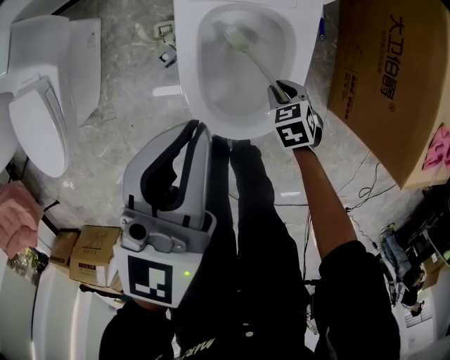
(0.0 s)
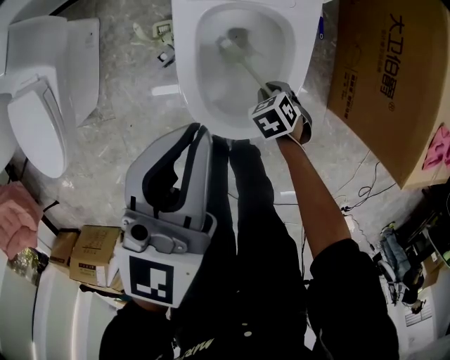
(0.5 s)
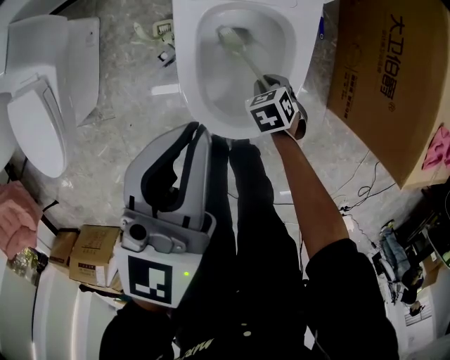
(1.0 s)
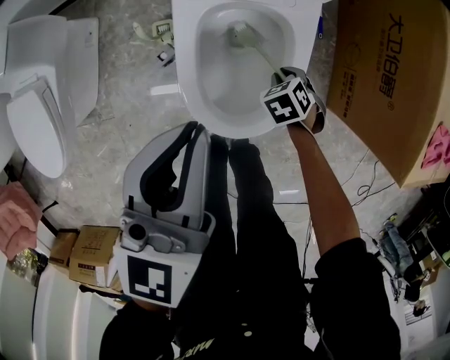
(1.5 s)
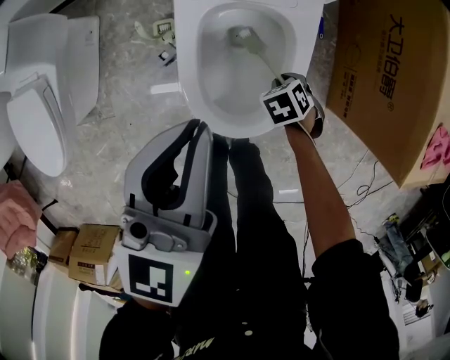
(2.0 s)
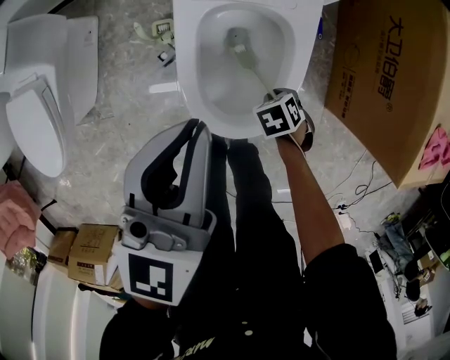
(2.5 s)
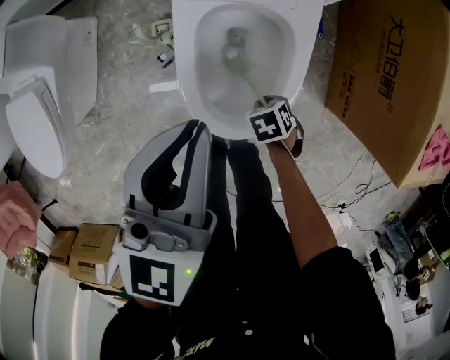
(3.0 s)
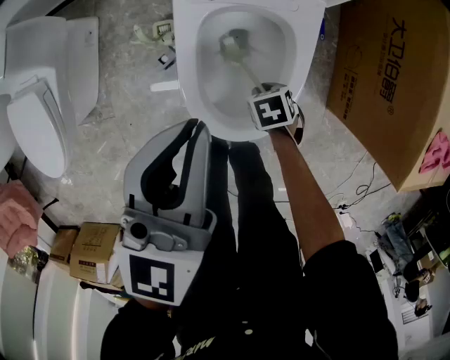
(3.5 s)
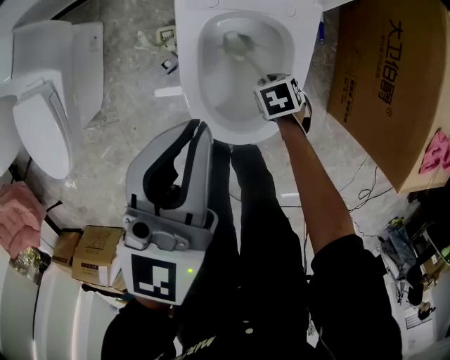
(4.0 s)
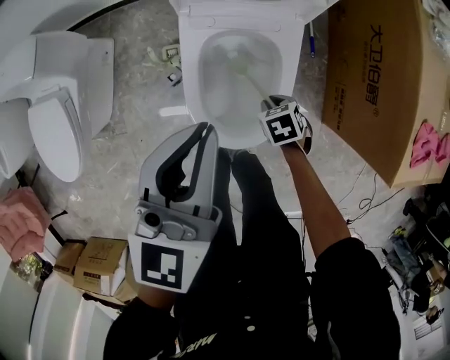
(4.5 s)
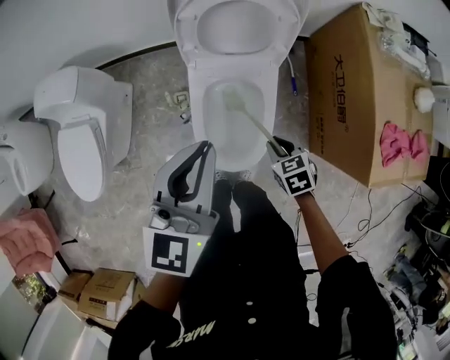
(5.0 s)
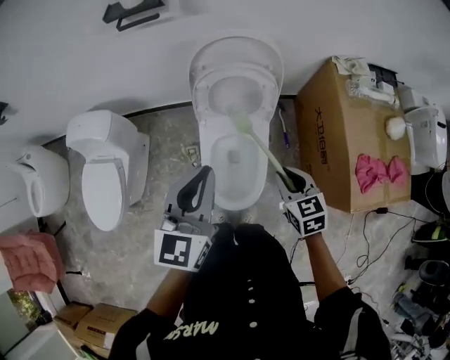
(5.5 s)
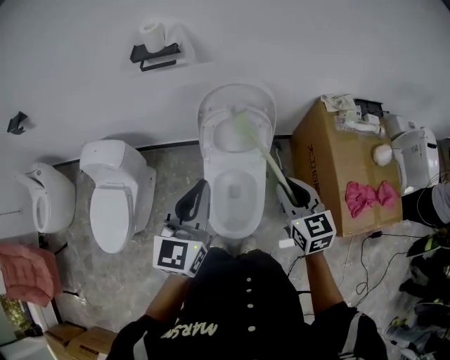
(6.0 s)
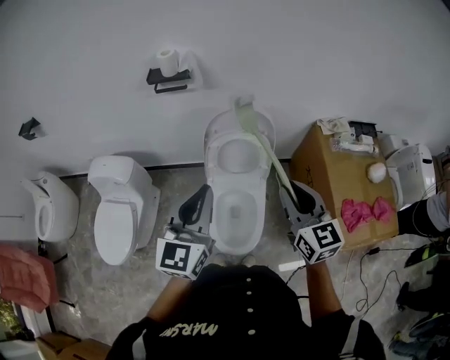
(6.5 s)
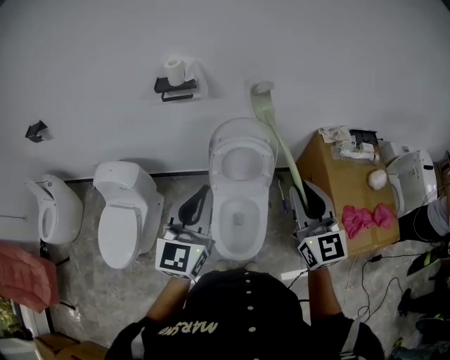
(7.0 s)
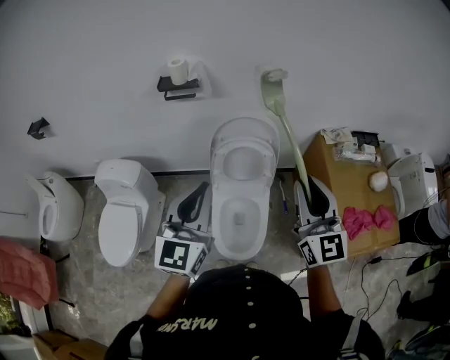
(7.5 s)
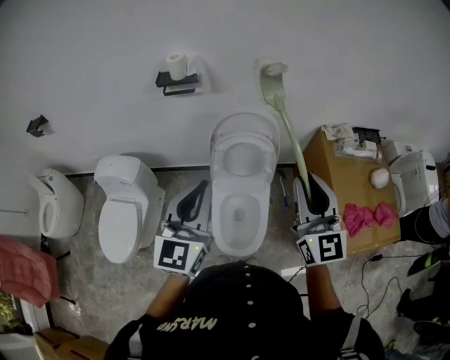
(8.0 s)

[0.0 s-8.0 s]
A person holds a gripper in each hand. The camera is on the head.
0.0 to 2.0 s: The grippers stay close to where they were, moving slightly.
4.0 to 6.0 s: The right gripper heads upward, covering roughly 70 cm, and tips its fingers upward by approximately 60 degrees. The left gripper moves upward, about 40 cm.
6.0 to 8.0 s: The left gripper shifts roughly 10 cm upward. The right gripper heads upward, covering approximately 20 cm, and tips its fingers upward by approximately 30 degrees.

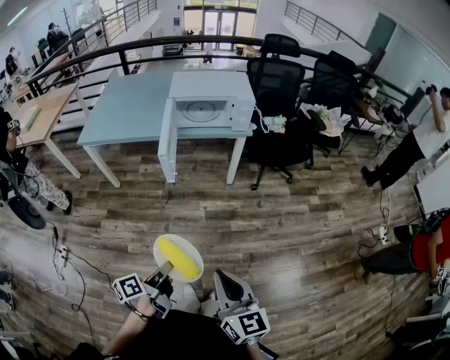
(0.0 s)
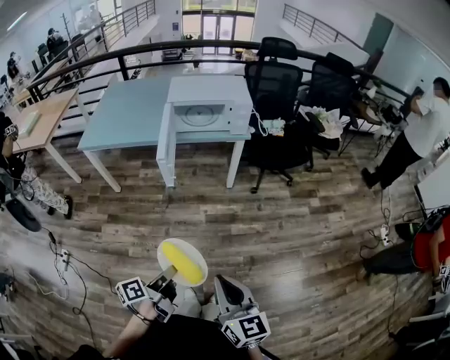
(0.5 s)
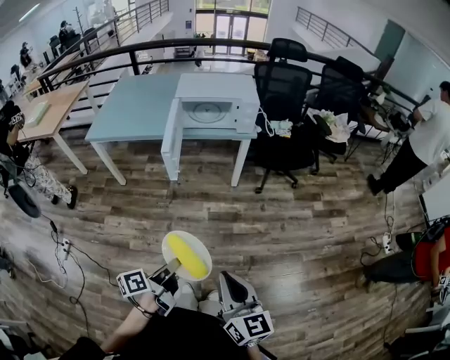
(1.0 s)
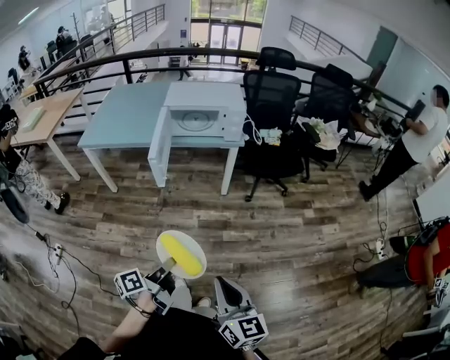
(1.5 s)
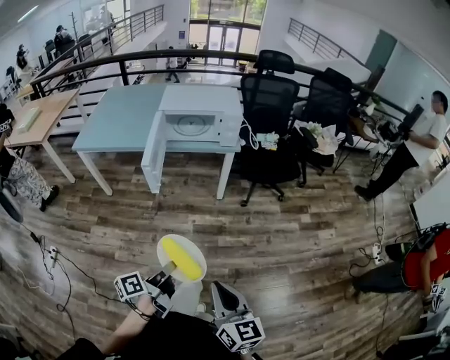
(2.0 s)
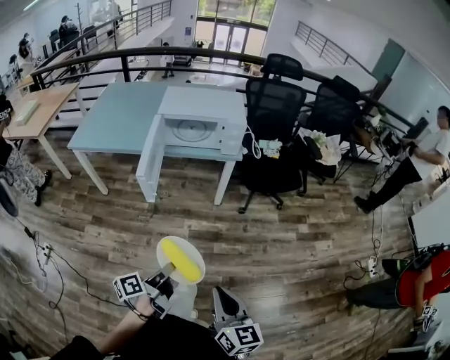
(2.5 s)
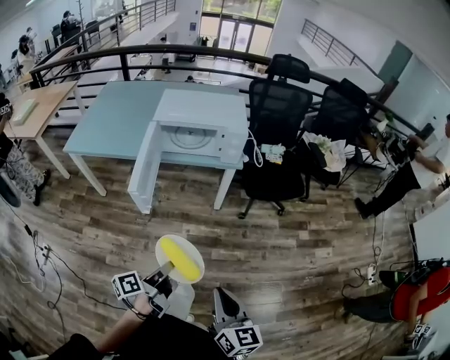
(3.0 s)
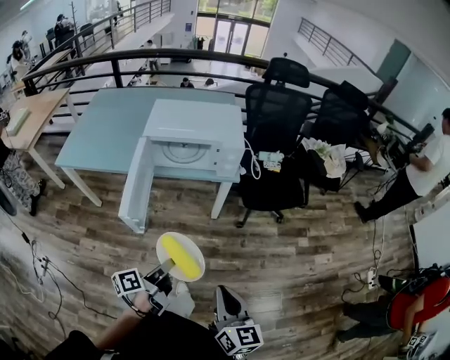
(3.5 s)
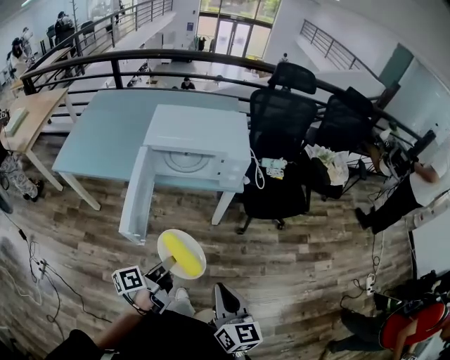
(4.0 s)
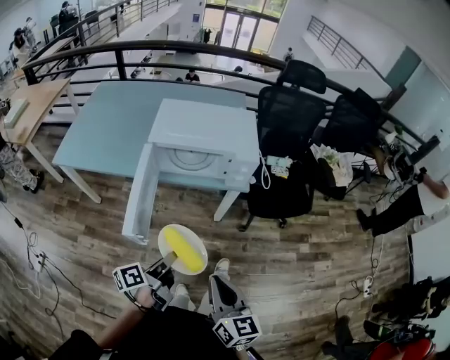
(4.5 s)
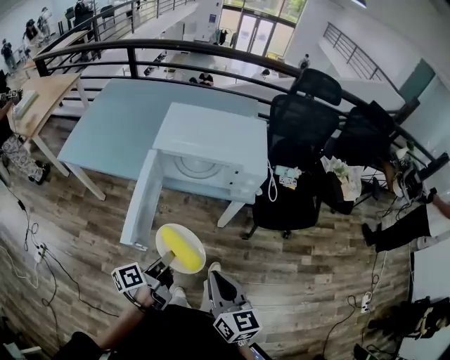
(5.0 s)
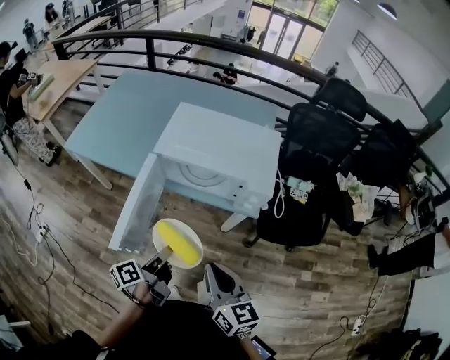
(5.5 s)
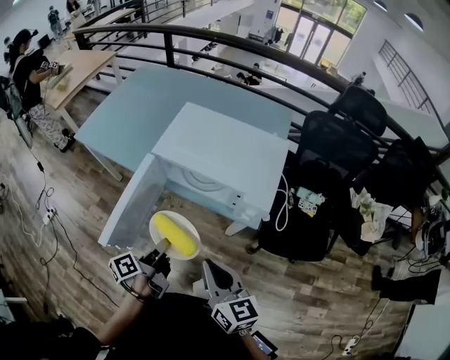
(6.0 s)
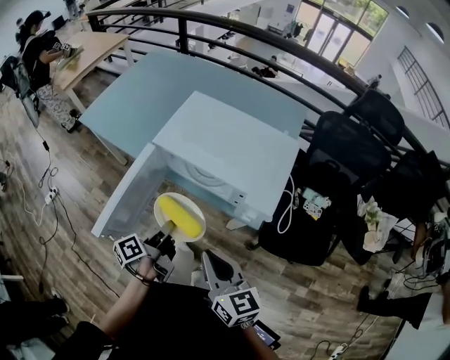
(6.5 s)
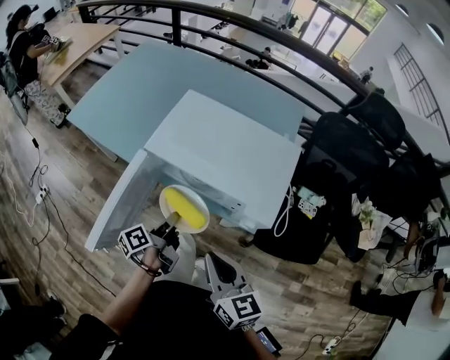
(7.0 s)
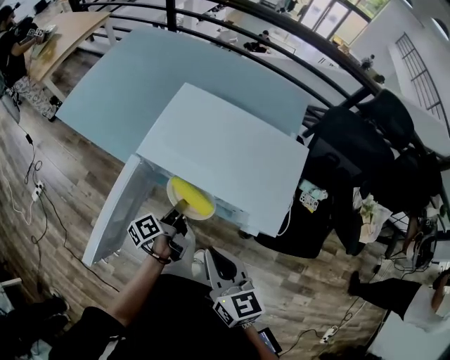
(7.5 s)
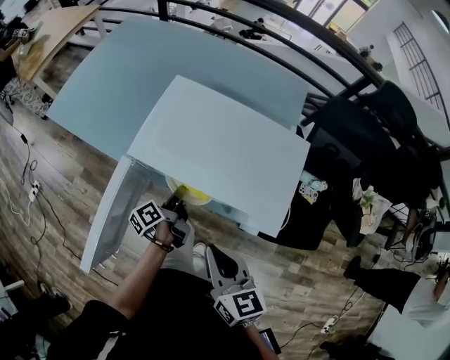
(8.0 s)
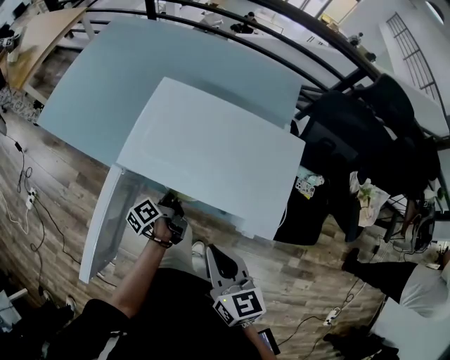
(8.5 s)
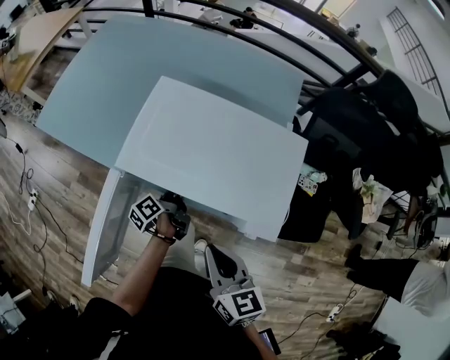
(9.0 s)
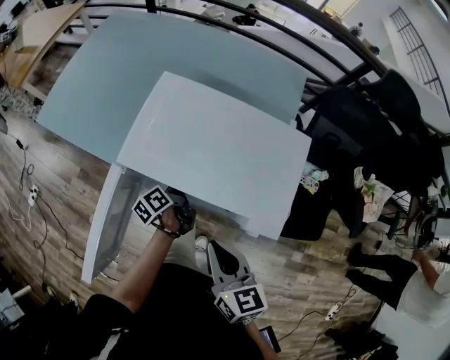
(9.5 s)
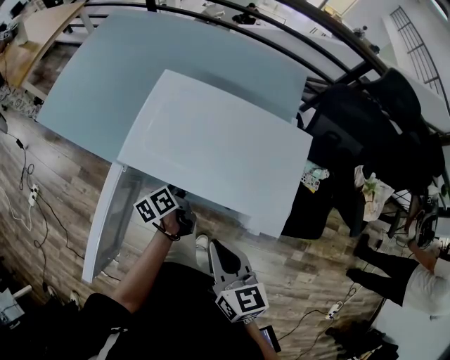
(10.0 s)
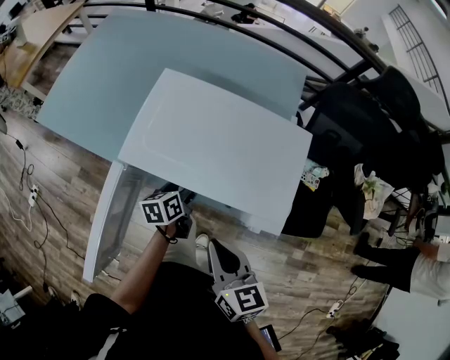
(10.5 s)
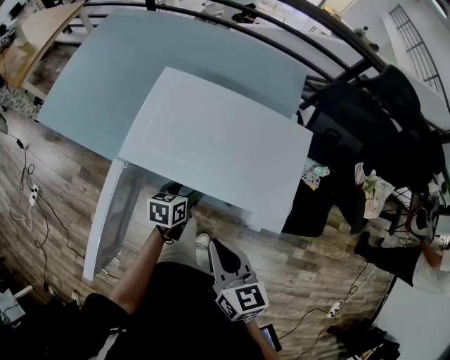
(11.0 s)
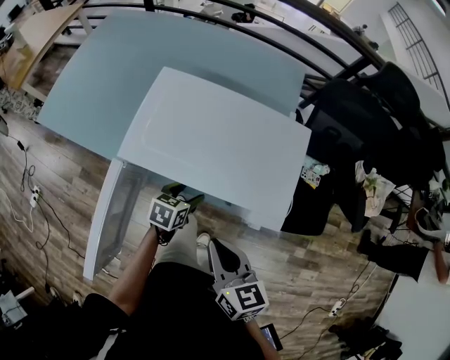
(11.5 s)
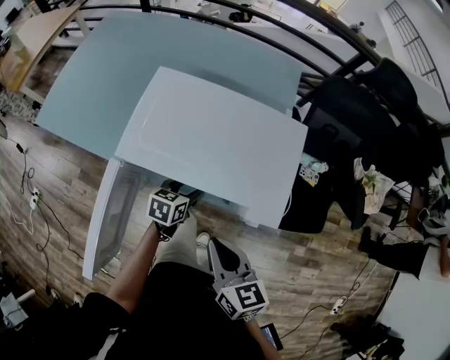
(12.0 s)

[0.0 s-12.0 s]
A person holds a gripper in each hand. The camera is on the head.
0.0 to 2.0 s: Both grippers travel together to the right, roughly 10 cm.
2.0 to 4.0 s: The grippers both shift forward by roughly 30 cm.
4.0 to 6.0 s: The right gripper ends up approximately 25 cm from where it was, and rotates some 30 degrees, while the left gripper shifts by approximately 15 cm, and rotates approximately 30 degrees.
6.0 to 8.0 s: The left gripper travels forward and downward by some 25 cm. Meanwhile the right gripper heads forward, covering about 15 cm.
8.0 to 10.0 s: The left gripper turns by about 20 degrees, and opens up.
10.0 to 12.0 s: The left gripper travels to the right by about 5 cm, and rolls clockwise, seen from behind, by about 50 degrees.

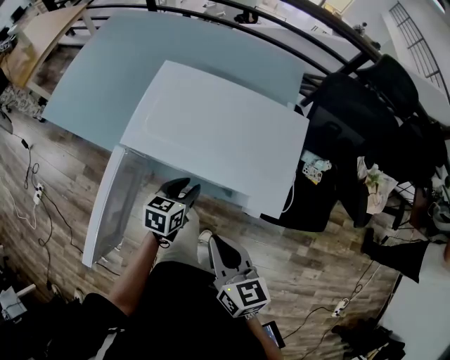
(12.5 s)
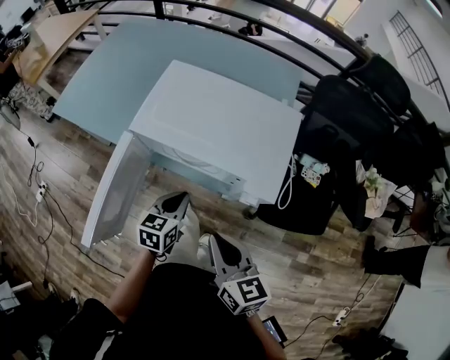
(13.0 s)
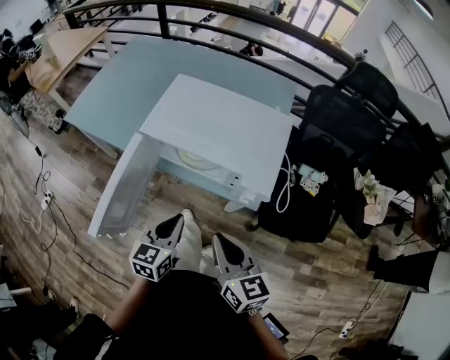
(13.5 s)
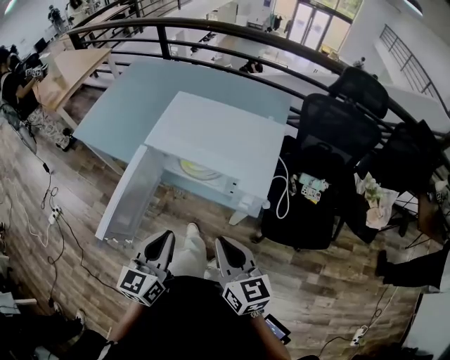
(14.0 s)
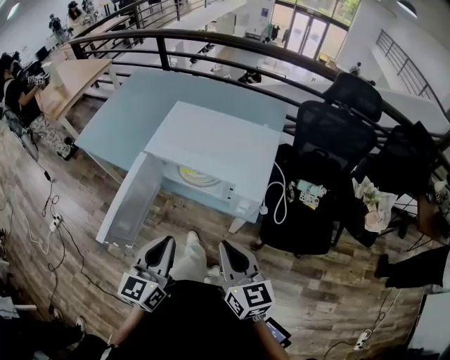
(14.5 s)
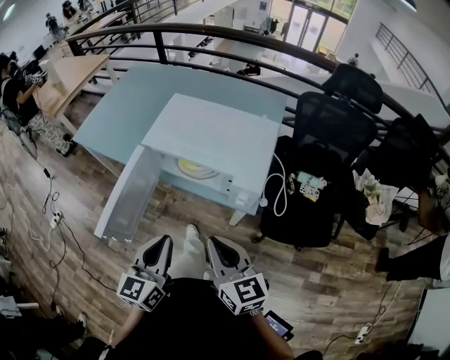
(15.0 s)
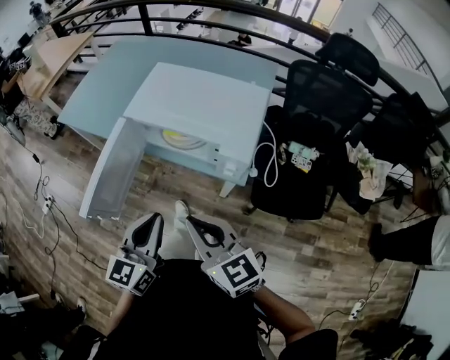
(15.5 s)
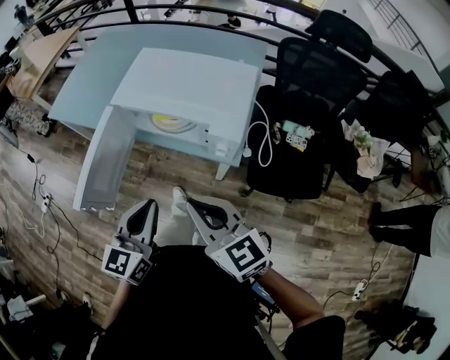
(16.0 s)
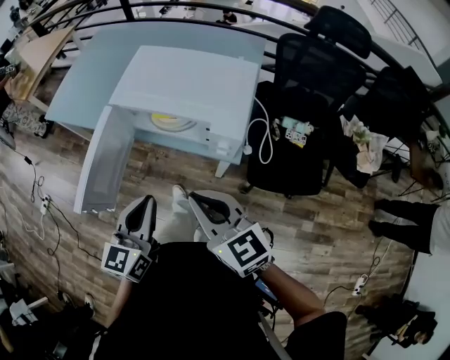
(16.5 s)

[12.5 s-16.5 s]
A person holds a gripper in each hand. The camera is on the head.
12.5 to 14.5 s: The left gripper heads upward and backward, covering roughly 30 cm, swivels some 40 degrees, and closes its fingers; the right gripper goes some 10 cm backward and upward.
14.5 to 16.5 s: There are only small adjustments of the grippers.

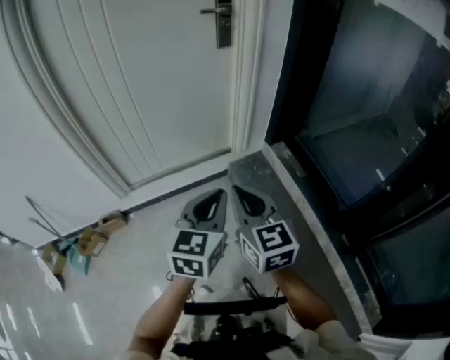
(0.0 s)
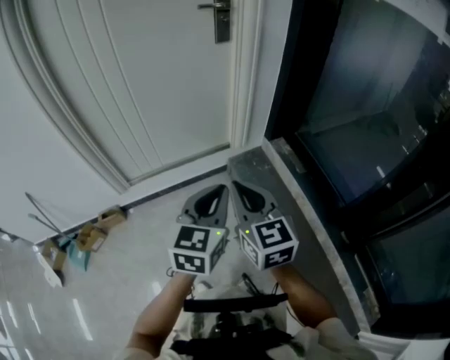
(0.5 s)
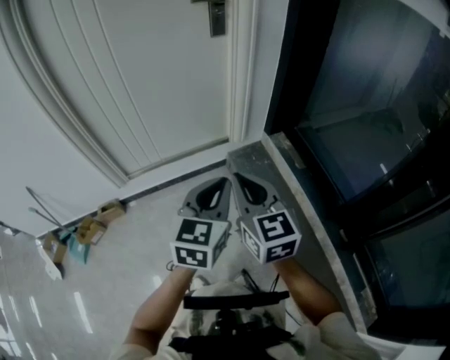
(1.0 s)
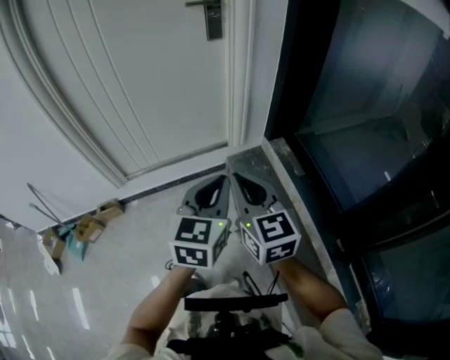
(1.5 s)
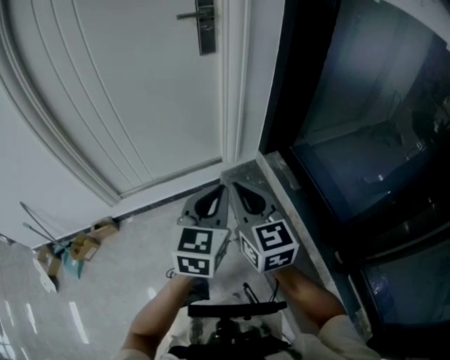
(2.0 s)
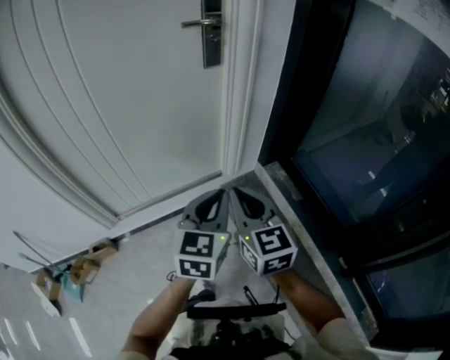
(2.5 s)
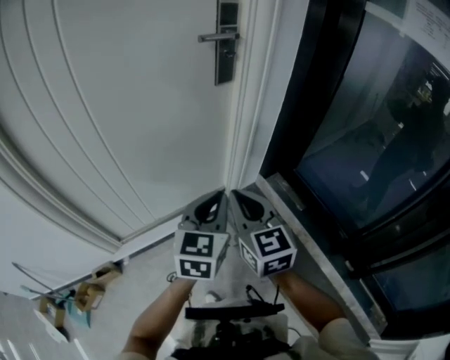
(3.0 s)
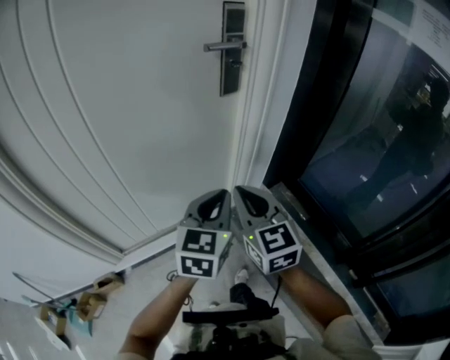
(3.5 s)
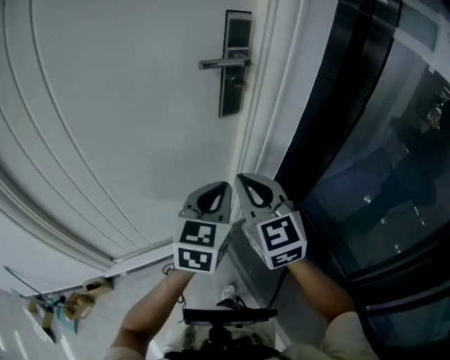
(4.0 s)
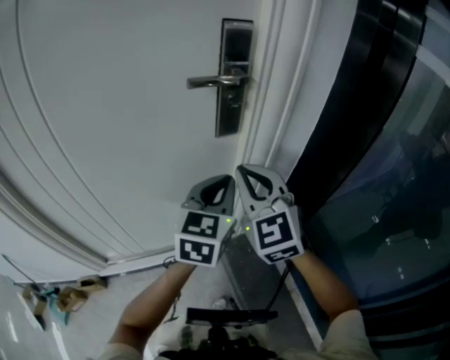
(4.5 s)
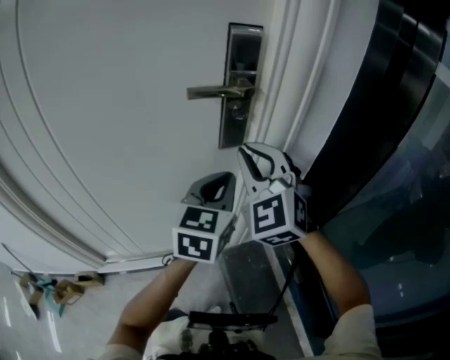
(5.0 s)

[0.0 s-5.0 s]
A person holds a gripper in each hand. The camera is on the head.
0.0 to 2.5 s: Both grippers move forward, roughly 15 cm.
2.5 to 5.0 s: The right gripper goes some 40 cm forward and upward, and rolls counterclockwise, seen from behind, by about 50 degrees. The left gripper goes roughly 35 cm forward.
